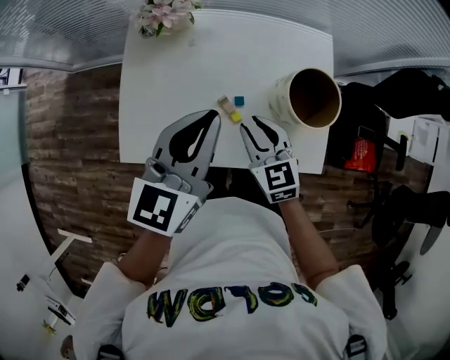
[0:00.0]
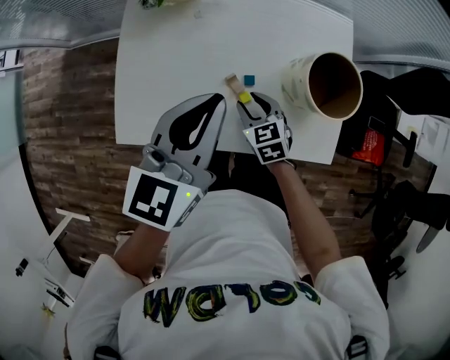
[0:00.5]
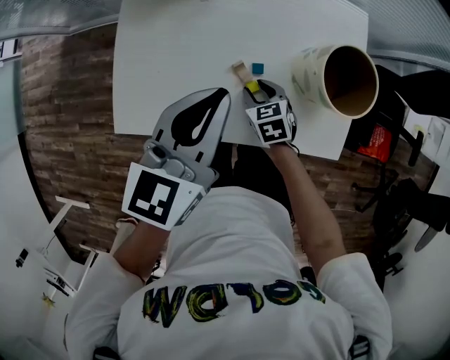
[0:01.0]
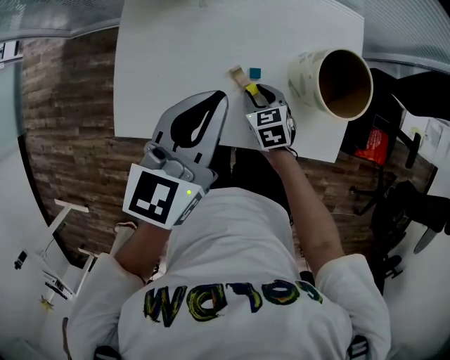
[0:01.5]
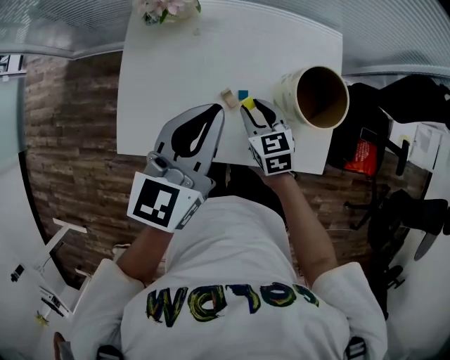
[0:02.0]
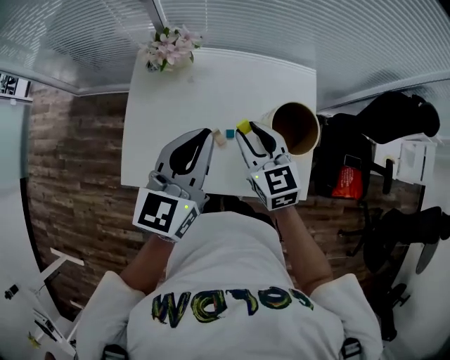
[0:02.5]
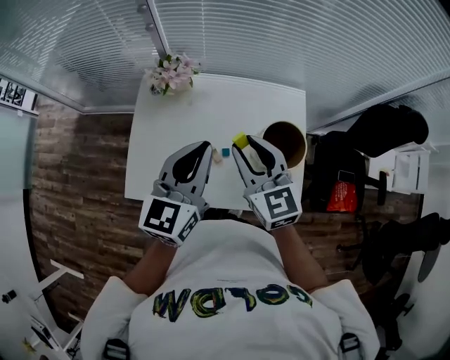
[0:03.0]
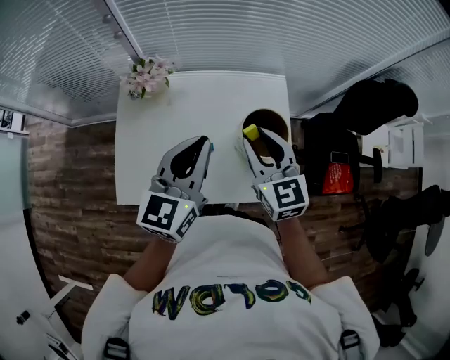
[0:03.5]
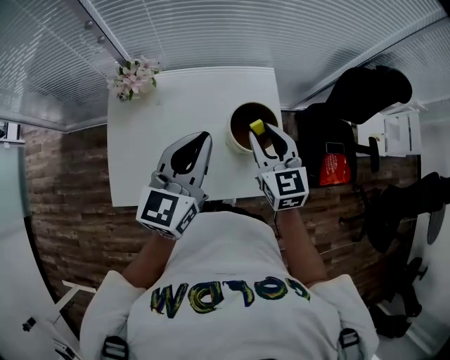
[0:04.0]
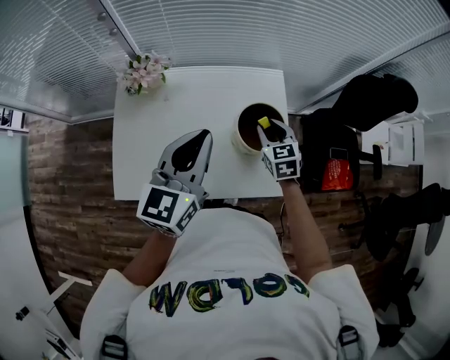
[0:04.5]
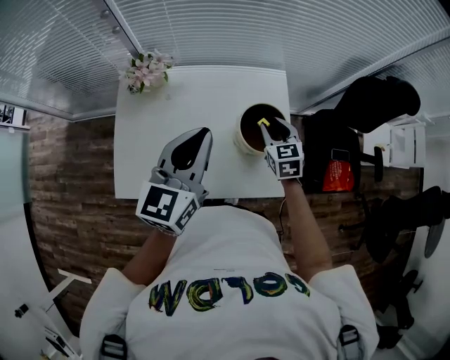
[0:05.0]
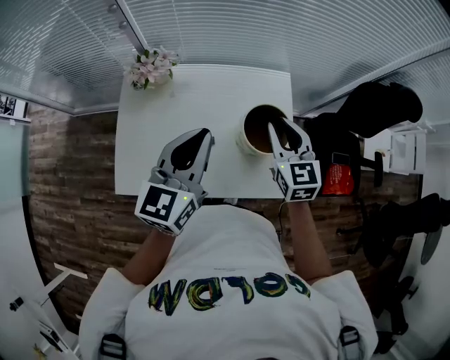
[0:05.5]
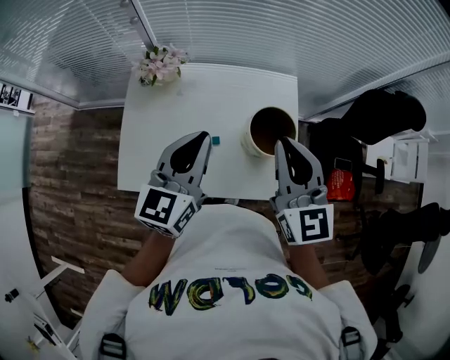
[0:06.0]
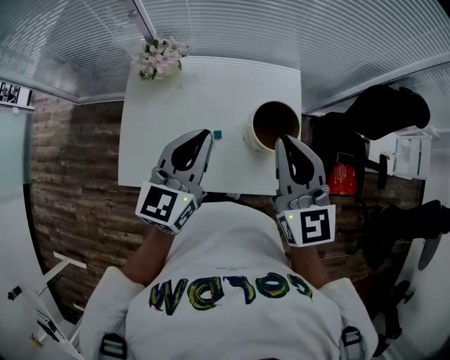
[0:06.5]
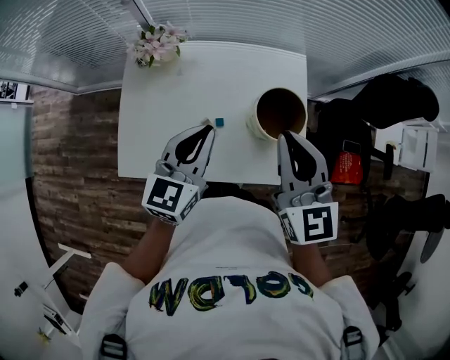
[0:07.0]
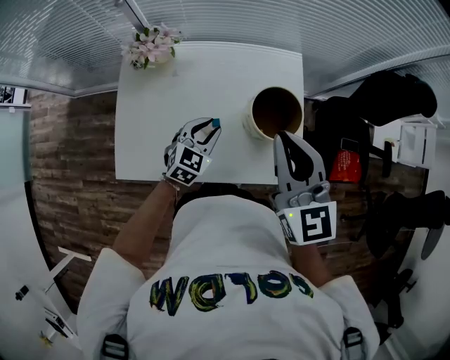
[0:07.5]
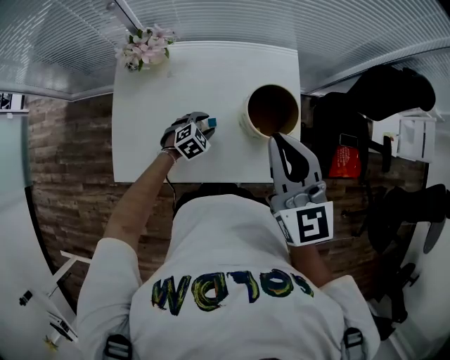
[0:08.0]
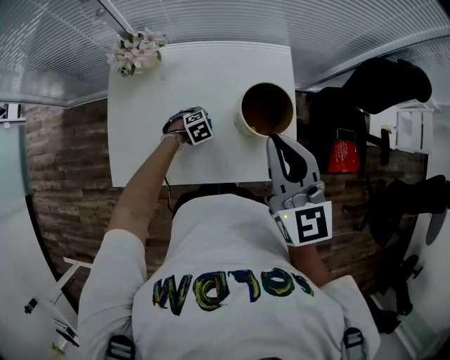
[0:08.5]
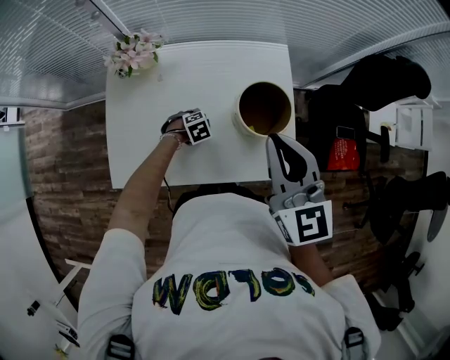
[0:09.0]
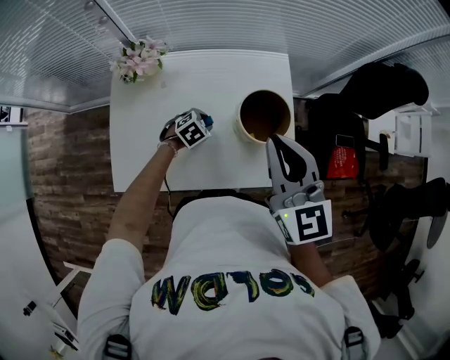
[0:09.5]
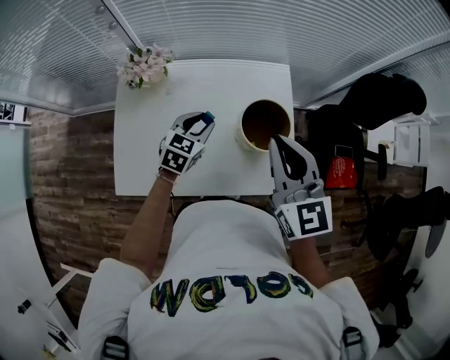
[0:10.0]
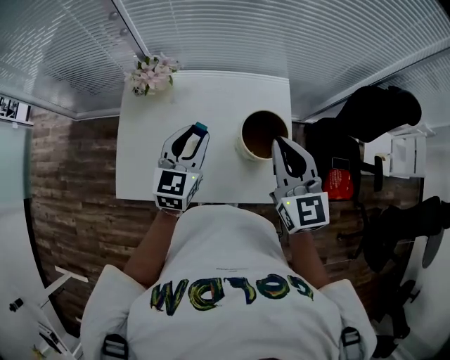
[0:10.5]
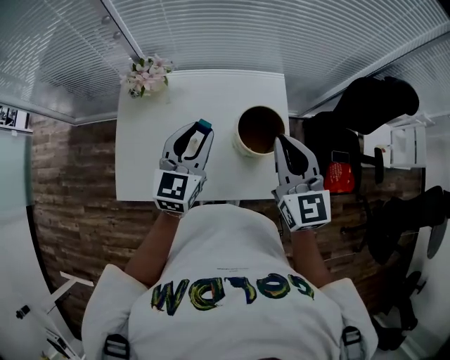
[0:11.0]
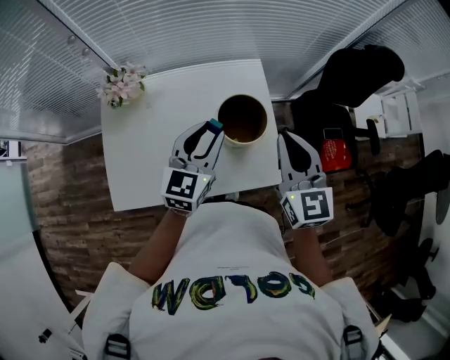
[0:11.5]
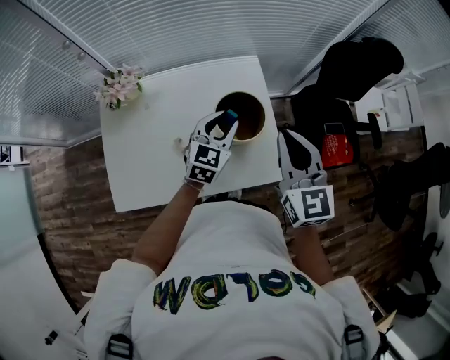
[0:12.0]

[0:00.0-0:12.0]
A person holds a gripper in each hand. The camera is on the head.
0:00.0 to 0:02.0: The right gripper moves downward, roughly 5 cm.
0:02.0 to 0:04.0: The left gripper heads to the right and upward, covering approximately 15 cm. The right gripper shifts approximately 30 cm upward and to the right, and turns by about 30 degrees.
0:04.0 to 0:06.0: The right gripper goes roughly 10 cm upward, and closes. Meanwhile the left gripper moves to the left, approximately 5 cm.
0:06.0 to 0:08.0: The left gripper is displaced downward by approximately 35 cm, tips its fingers downward by some 50 degrees, and opens its fingers.
0:08.0 to 0:10.0: The left gripper goes some 15 cm upward, and changes its angle by about 30 degrees.
0:10.0 to 0:12.0: The right gripper heads to the right, covering about 10 cm. Meanwhile the left gripper is displaced to the right and upward by some 15 cm.

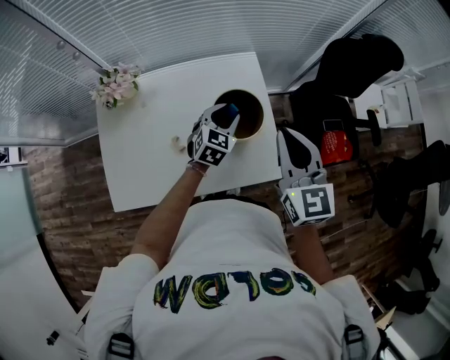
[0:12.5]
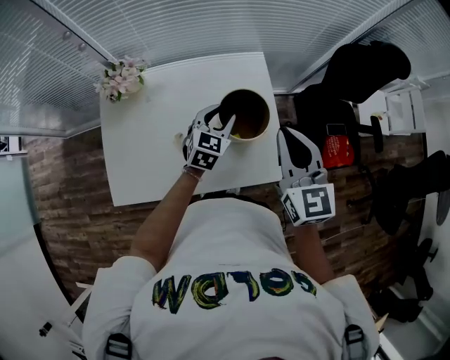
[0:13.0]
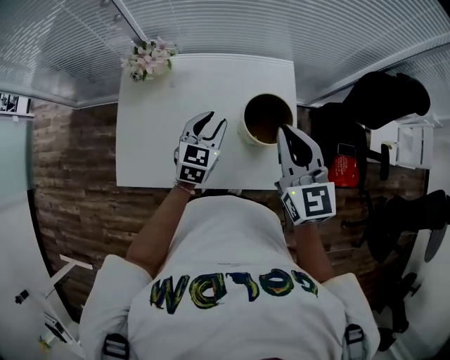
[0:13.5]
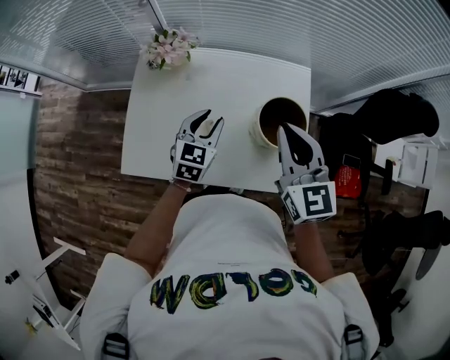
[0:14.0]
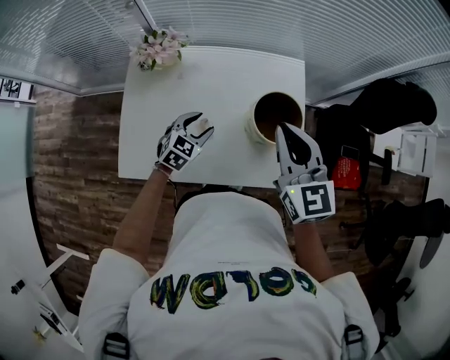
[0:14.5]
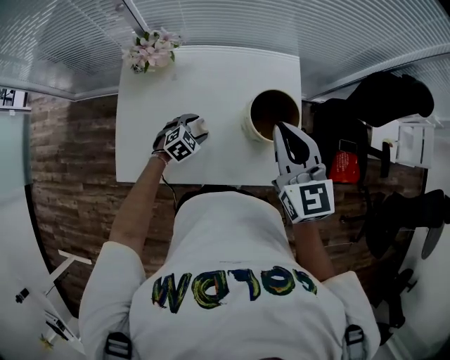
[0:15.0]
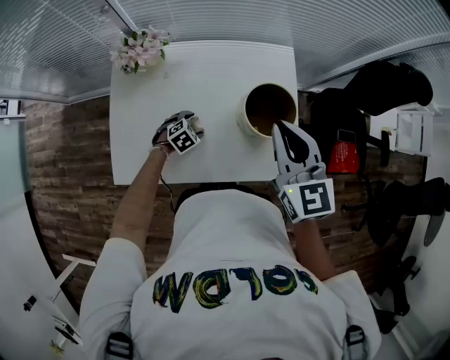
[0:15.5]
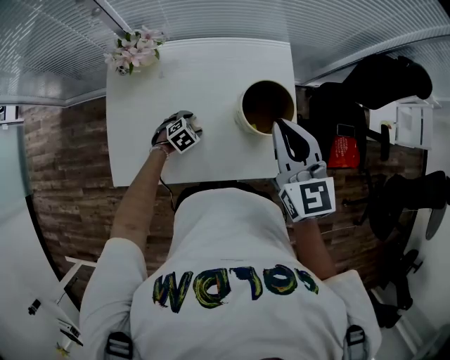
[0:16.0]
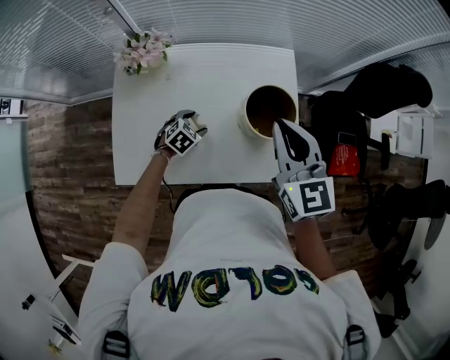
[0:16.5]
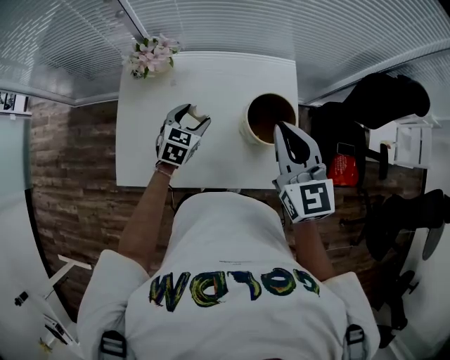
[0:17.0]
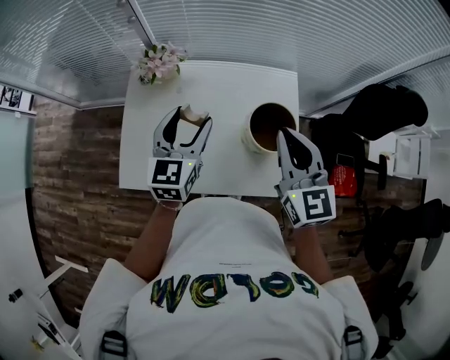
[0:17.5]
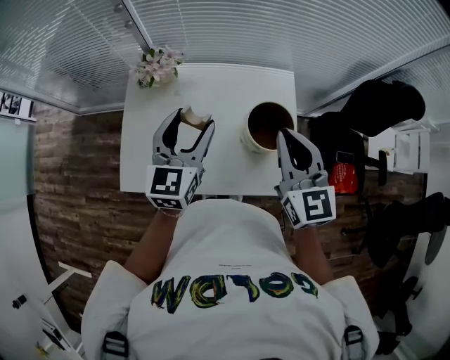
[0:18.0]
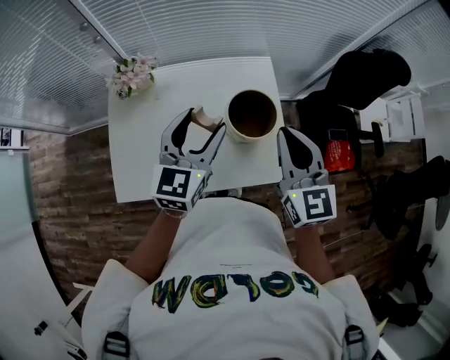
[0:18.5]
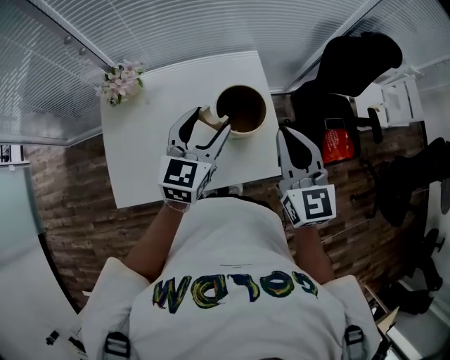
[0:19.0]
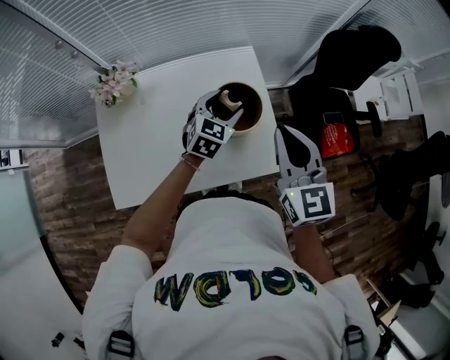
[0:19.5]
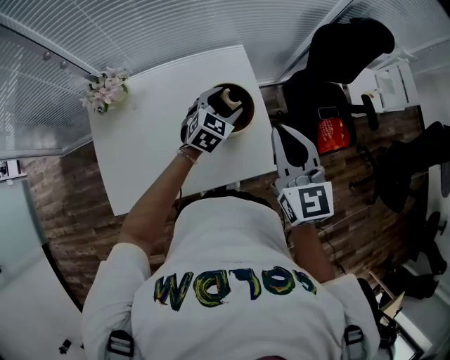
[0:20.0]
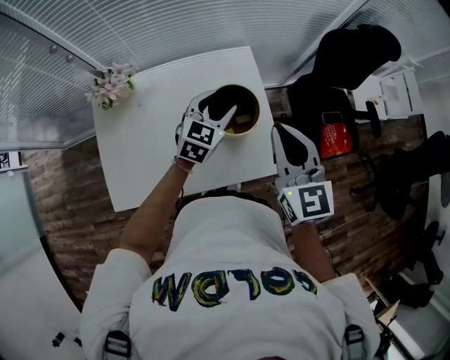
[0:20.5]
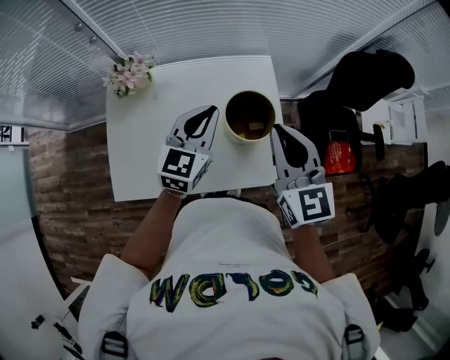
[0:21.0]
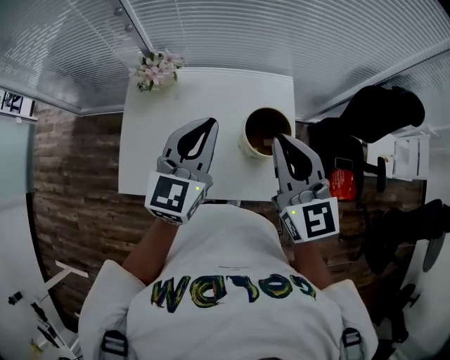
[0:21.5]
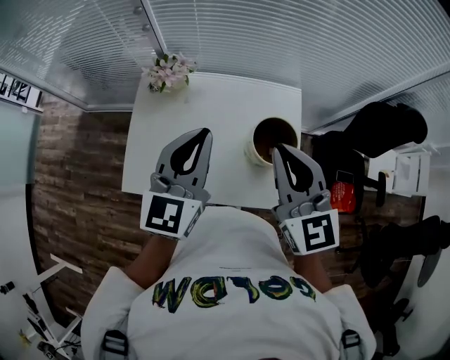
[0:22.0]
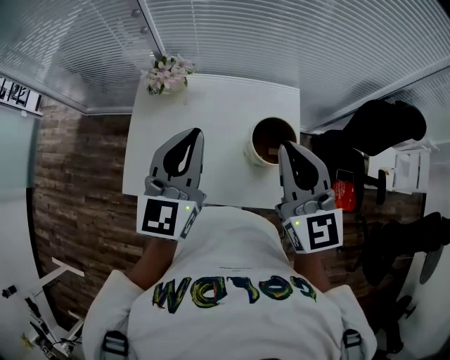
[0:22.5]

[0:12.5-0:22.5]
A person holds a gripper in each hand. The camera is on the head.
0:12.5 to 0:14.5: The right gripper travels to the left by some 10 cm, while the left gripper goes about 20 cm to the left.
0:14.5 to 0:16.5: The left gripper travels downward by approximately 10 cm, and rotates roughly 20 degrees.
0:16.5 to 0:18.5: The right gripper moves to the right, roughly 5 cm, while the left gripper goes roughly 35 cm upward, and tilts its fingers roughly 50 degrees upward.
0:18.5 to 0:20.5: The right gripper ends up roughly 5 cm from where it was. The left gripper shifts approximately 20 cm downward, to the right and forward, and turns by some 20 degrees.
0:20.5 to 0:22.5: The right gripper shifts by about 15 cm. The left gripper moves some 30 cm, turns by some 40 degrees, and closes its fingers.

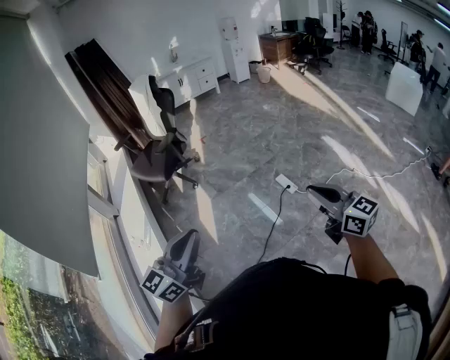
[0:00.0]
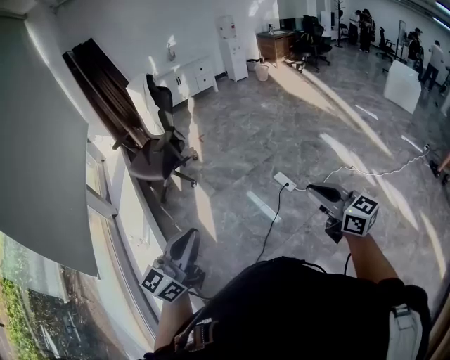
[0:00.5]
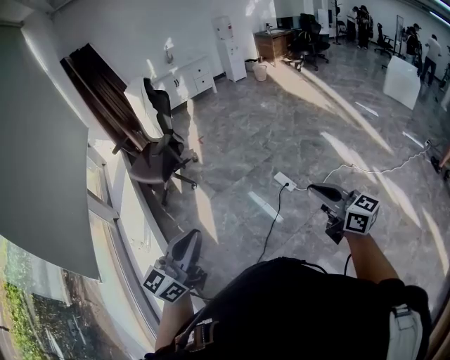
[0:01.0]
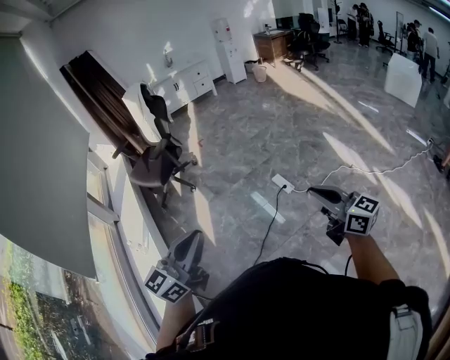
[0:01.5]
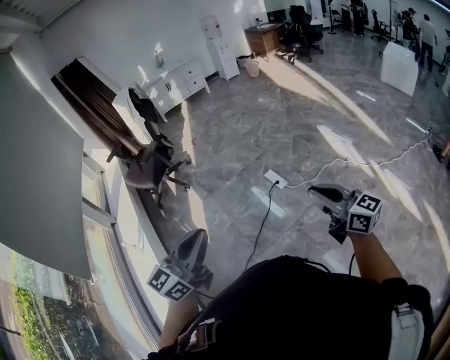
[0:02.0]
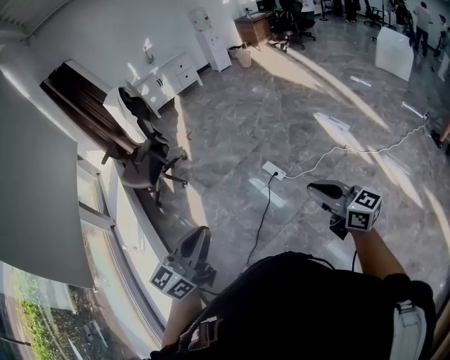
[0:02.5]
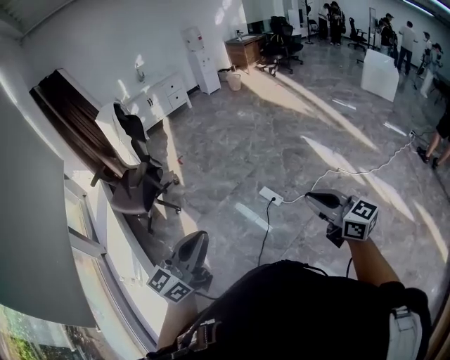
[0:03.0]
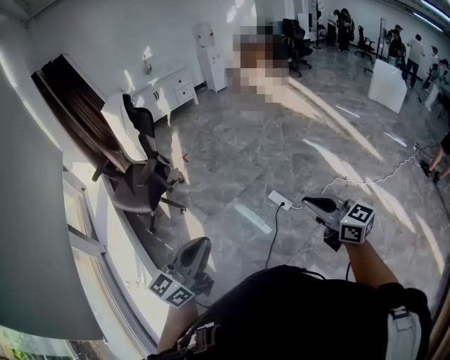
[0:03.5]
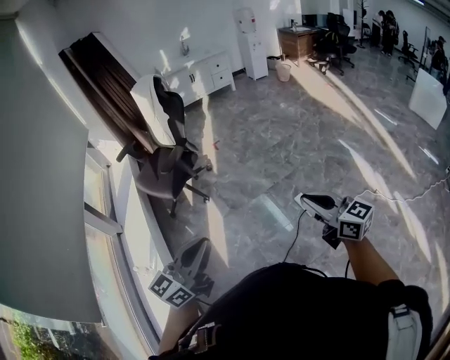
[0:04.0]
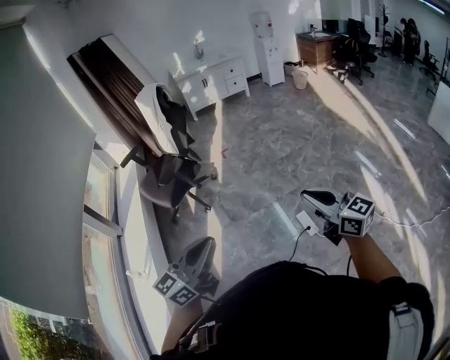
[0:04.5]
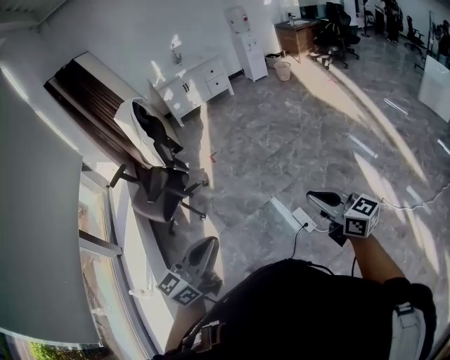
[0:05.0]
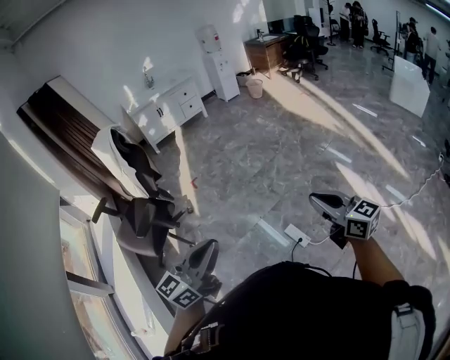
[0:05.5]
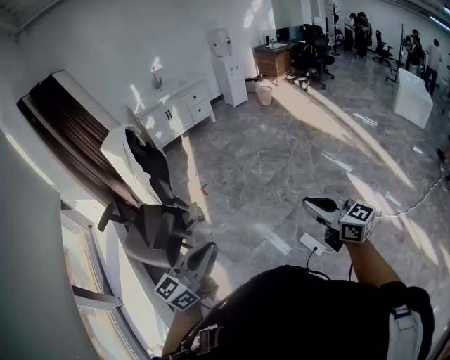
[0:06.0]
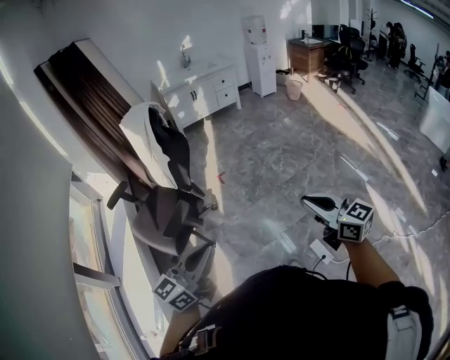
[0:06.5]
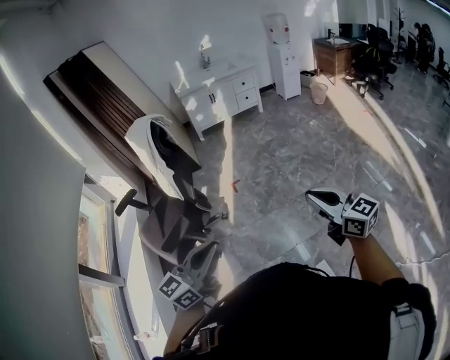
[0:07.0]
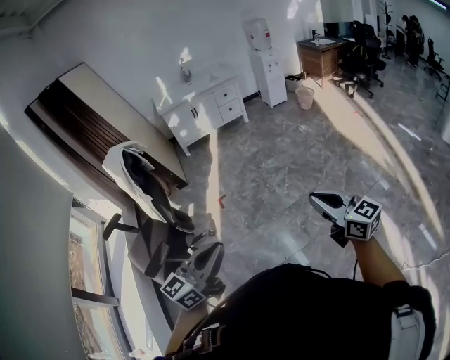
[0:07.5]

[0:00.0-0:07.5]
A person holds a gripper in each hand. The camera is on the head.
0:00.0 to 0:02.0: The grippers both shift to the right by some 20 cm.
0:02.0 to 0:04.0: The pair of grippers is taken forward and to the left, approximately 40 cm.
0:04.0 to 0:05.5: The two grippers go some 35 cm forward and to the right.
0:05.5 to 0:07.5: Both grippers are carried forward, some 50 cm.
